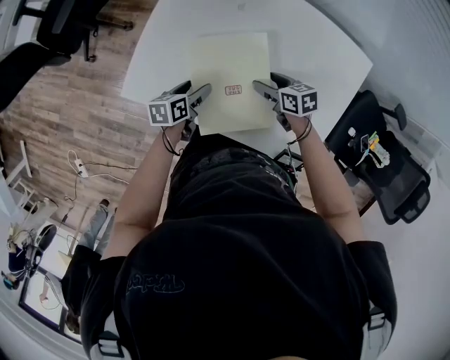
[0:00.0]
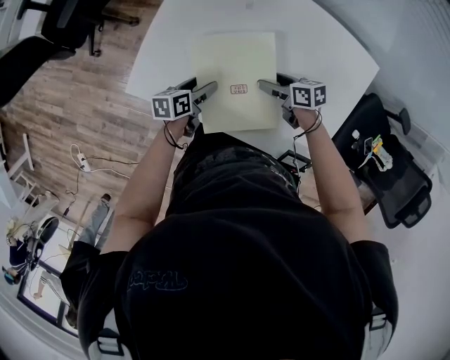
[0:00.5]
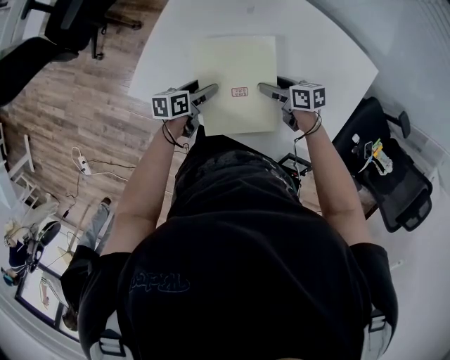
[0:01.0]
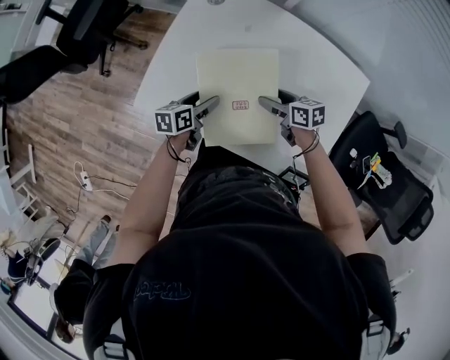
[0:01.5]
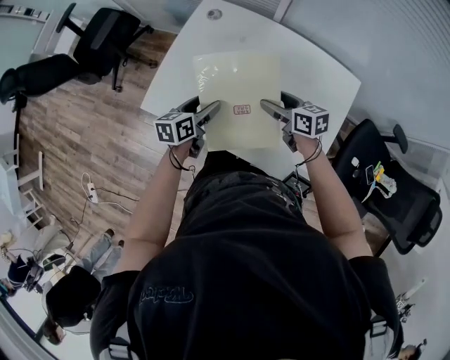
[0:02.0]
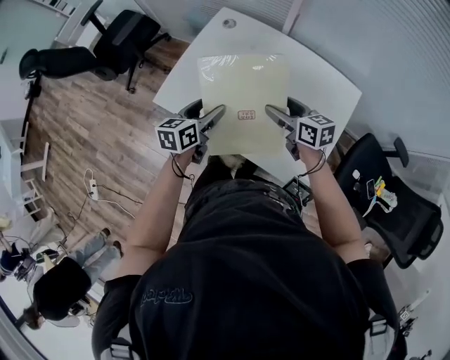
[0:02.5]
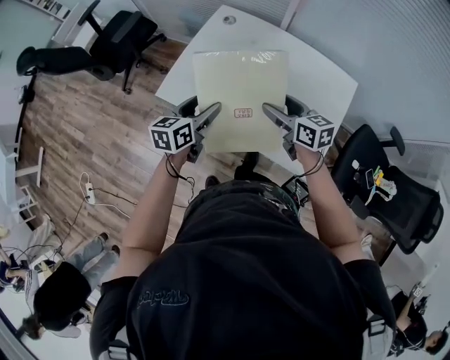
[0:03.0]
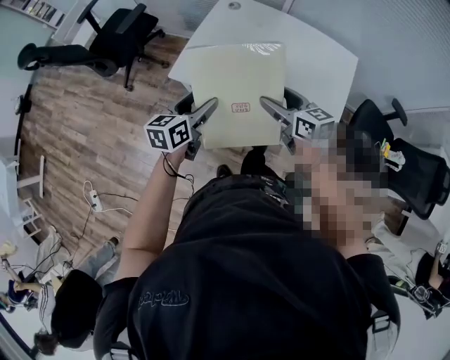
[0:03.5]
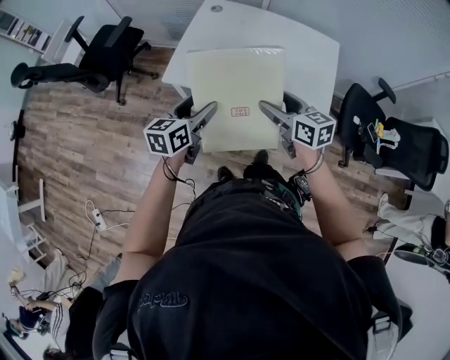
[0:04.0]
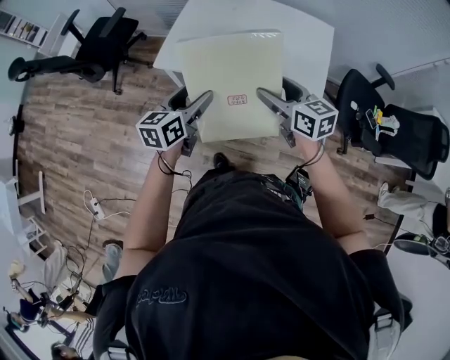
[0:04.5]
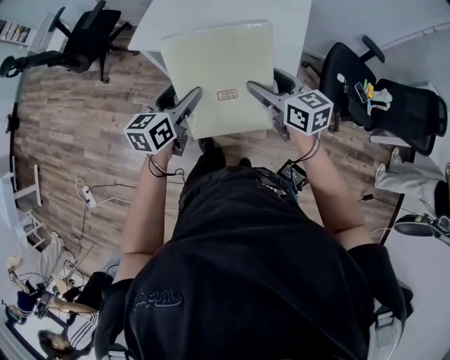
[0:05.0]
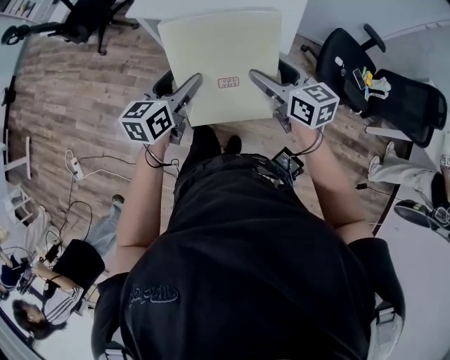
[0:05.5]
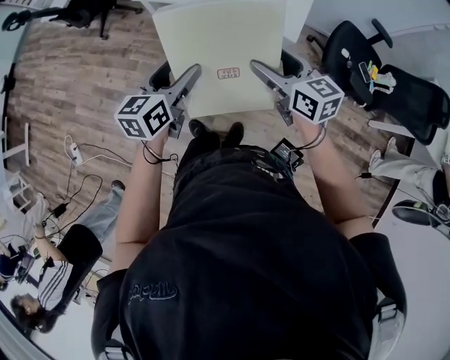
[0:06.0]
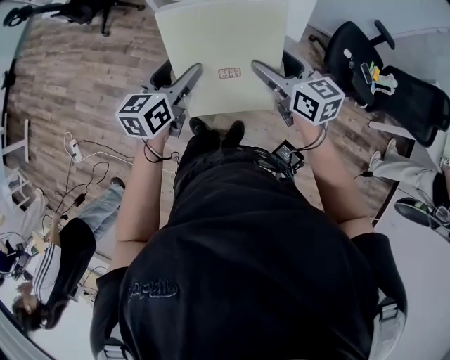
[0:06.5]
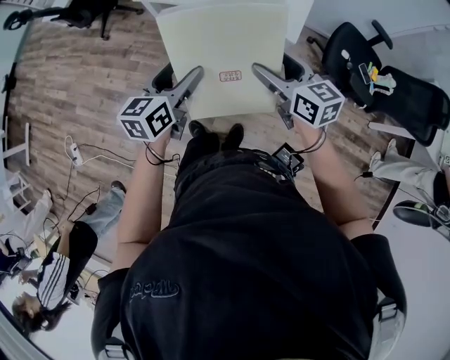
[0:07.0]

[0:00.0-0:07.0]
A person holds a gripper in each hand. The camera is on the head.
0:00.0 to 0:02.0: Both grippers move upward, roughly 10 cm.
0:02.0 to 0:03.5: Both grippers move backward, to the left and upward, approximately 25 cm.
0:03.5 to 0:05.0: Both grippers travel together backward and to the right, roughly 25 cm.
0:05.0 to 0:07.0: The two grippers go some 15 cm backward.

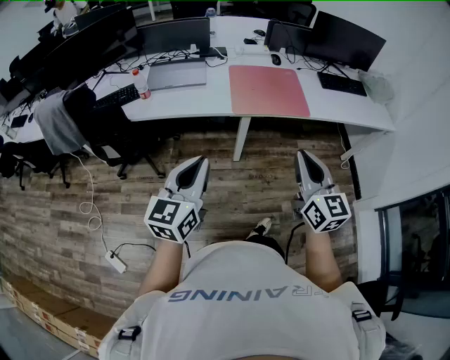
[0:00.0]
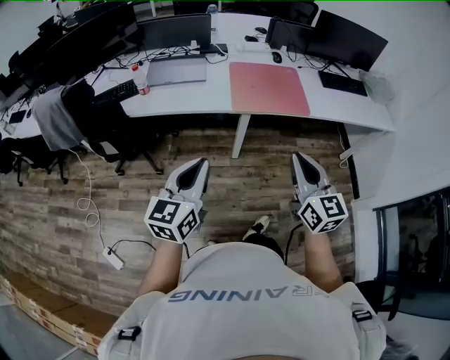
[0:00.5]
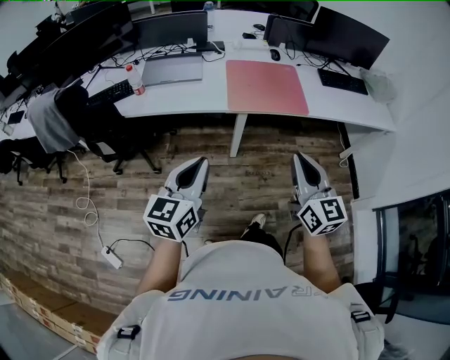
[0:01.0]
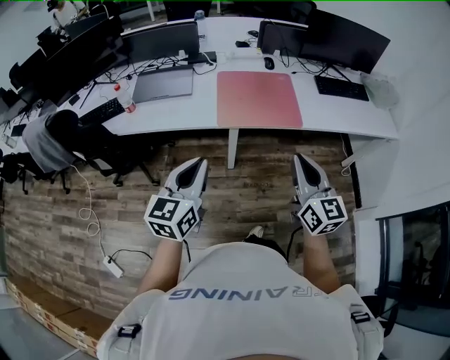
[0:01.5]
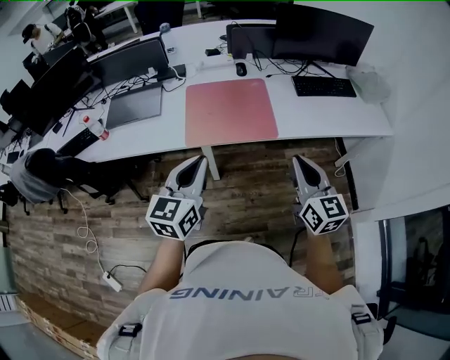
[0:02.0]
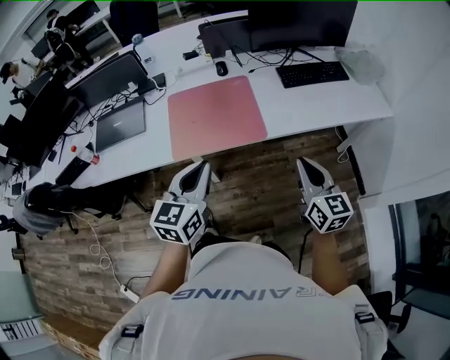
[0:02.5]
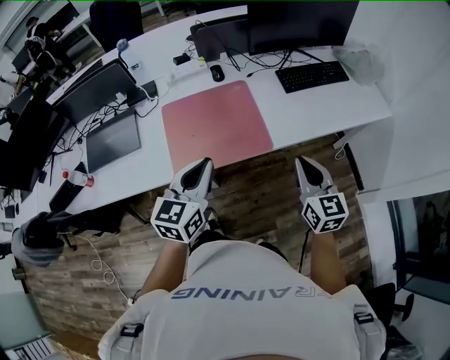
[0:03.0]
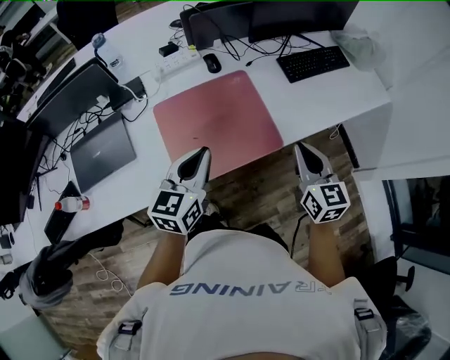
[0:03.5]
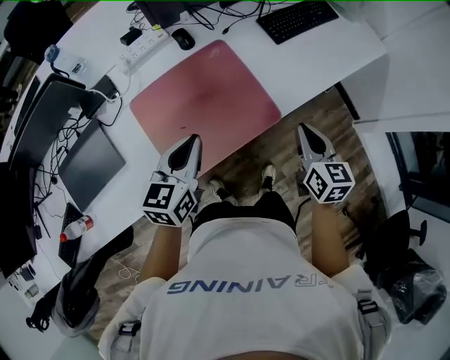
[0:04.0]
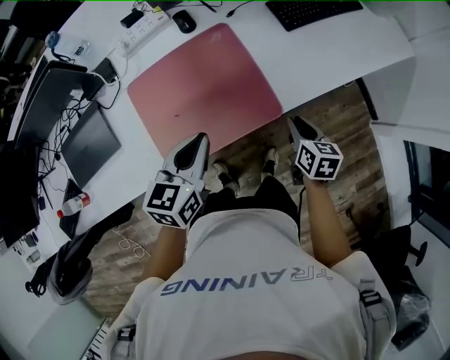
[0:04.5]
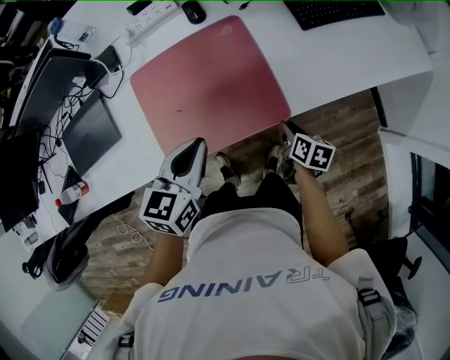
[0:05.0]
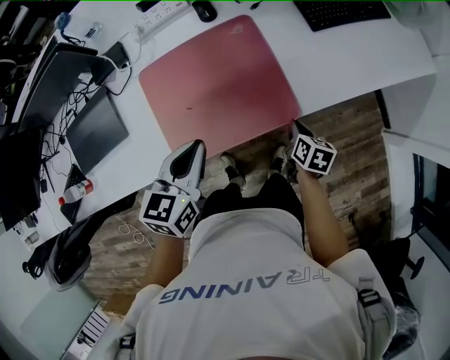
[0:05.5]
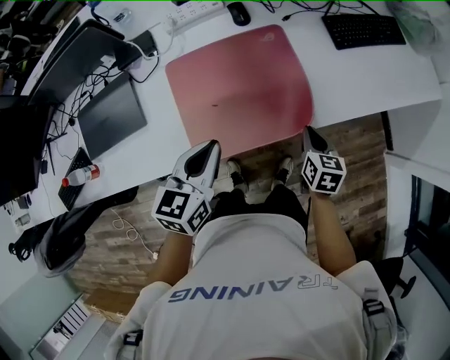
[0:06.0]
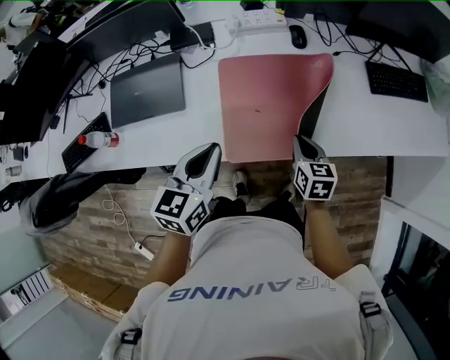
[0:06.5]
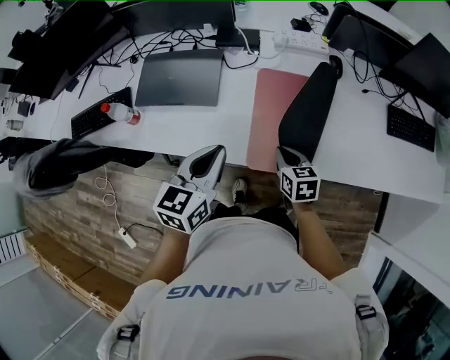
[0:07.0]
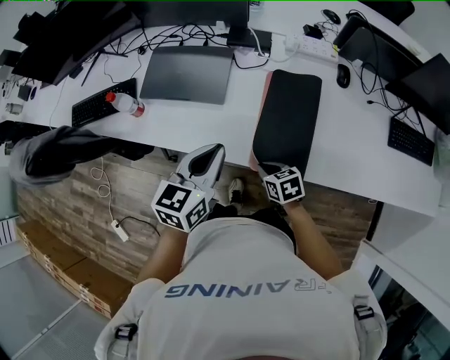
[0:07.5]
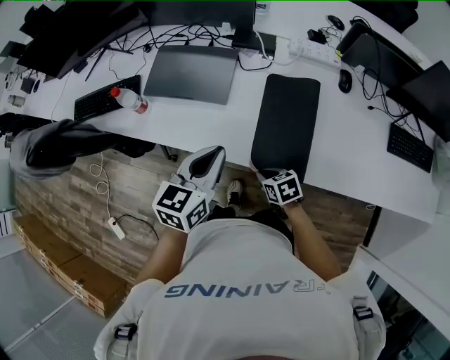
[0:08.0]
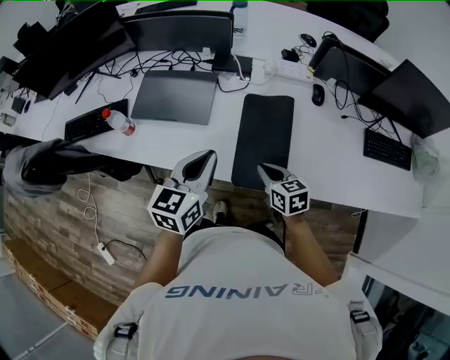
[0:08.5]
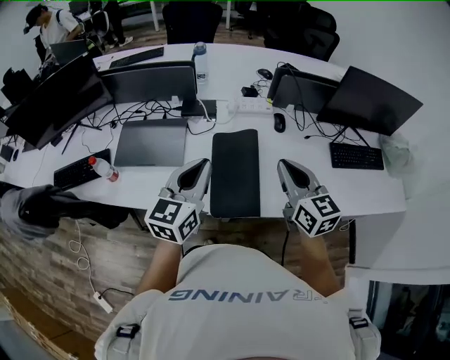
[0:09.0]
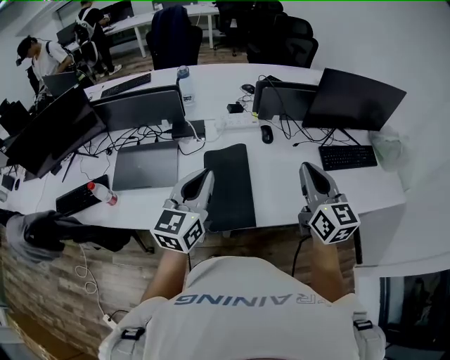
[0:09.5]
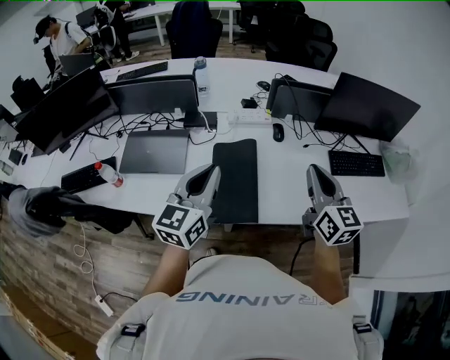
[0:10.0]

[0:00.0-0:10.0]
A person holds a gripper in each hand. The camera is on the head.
0:00.0 to 0:02.0: Both grippers move to the right and forward, roughly 30 cm.
0:02.0 to 0:04.0: The left gripper moves about 30 cm, and turns by approximately 30 degrees. The right gripper moves roughly 25 cm, and turns by approximately 40 degrees.
0:04.0 to 0:06.0: The left gripper goes to the right and returns, some 5 cm each way; the right gripper travels downward by approximately 15 cm, and opens, then closes again.
0:06.0 to 0:08.0: The right gripper ends up about 35 cm from where it was, and rotates approximately 60 degrees. The left gripper shifts by approximately 25 cm, and rotates some 30 degrees.
0:08.0 to 0:10.0: The left gripper goes roughly 15 cm upward, and changes its angle by approximately 20 degrees, while the right gripper travels upward by some 40 cm, and tilts its fingers about 50 degrees upward.

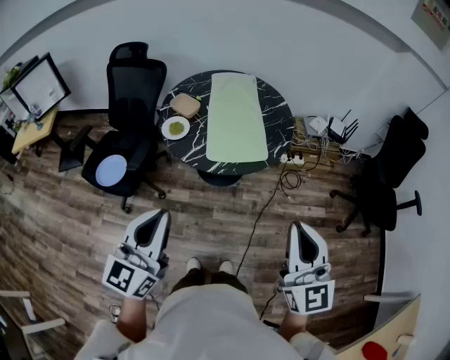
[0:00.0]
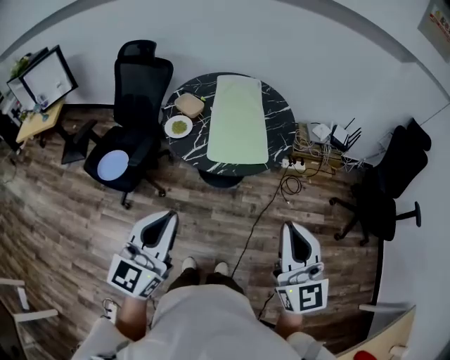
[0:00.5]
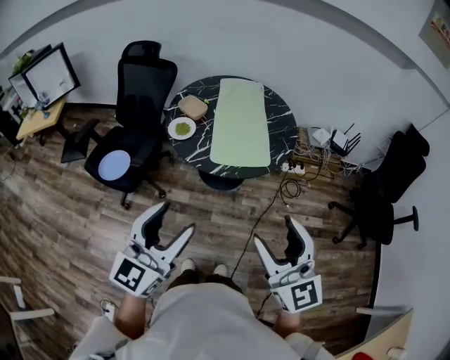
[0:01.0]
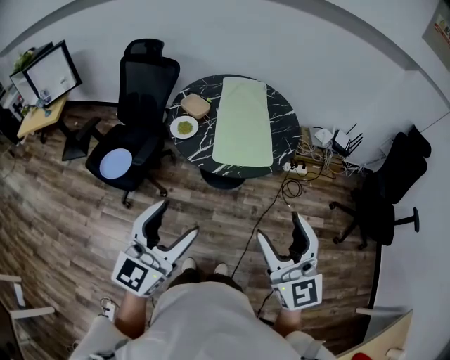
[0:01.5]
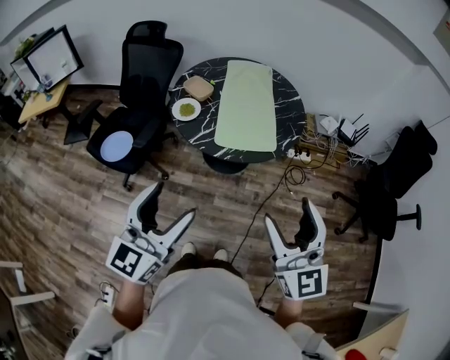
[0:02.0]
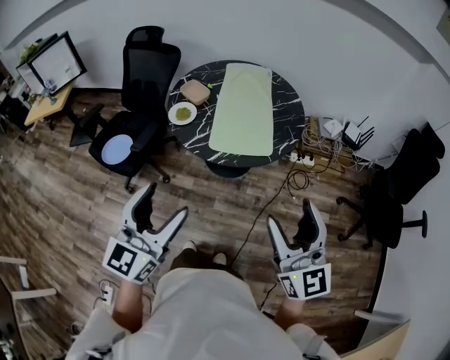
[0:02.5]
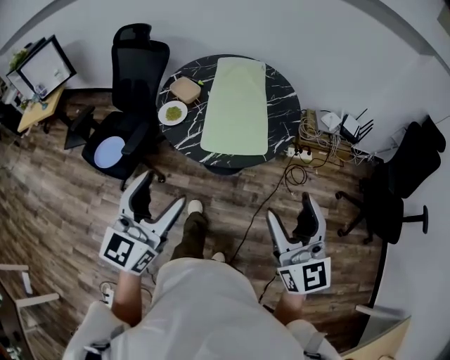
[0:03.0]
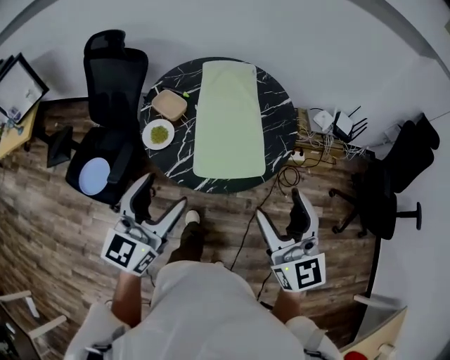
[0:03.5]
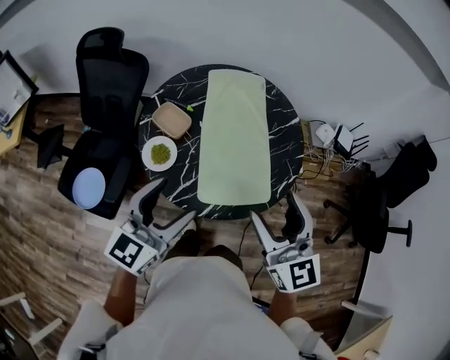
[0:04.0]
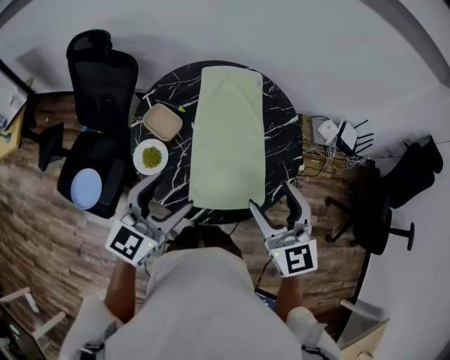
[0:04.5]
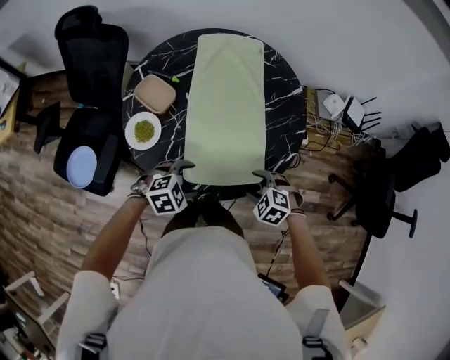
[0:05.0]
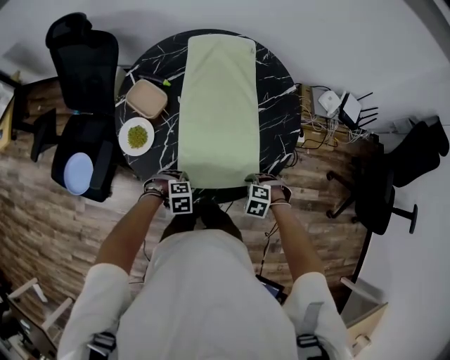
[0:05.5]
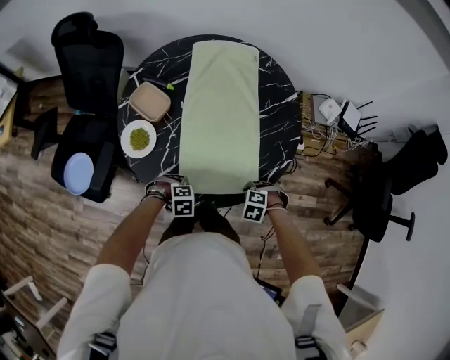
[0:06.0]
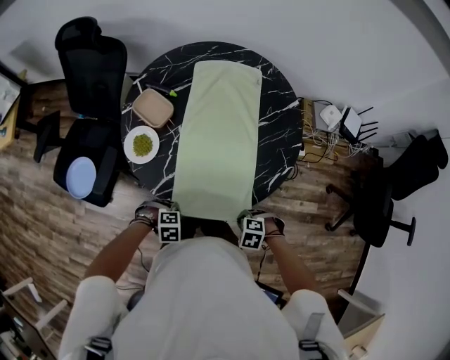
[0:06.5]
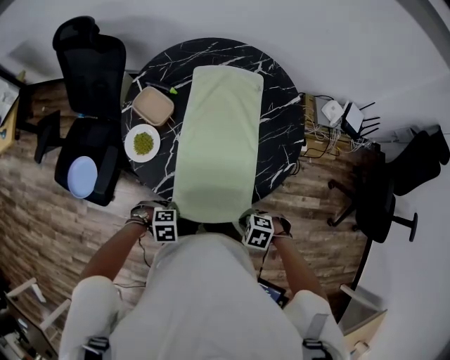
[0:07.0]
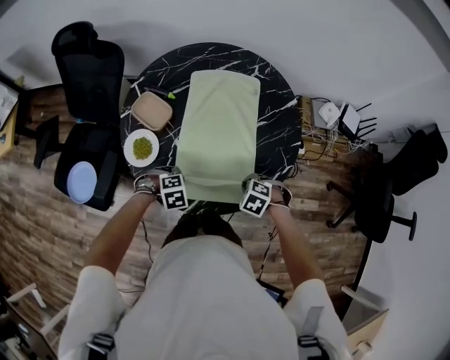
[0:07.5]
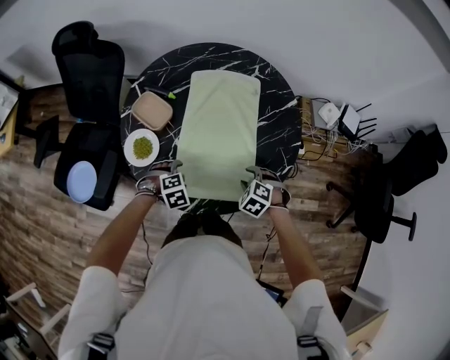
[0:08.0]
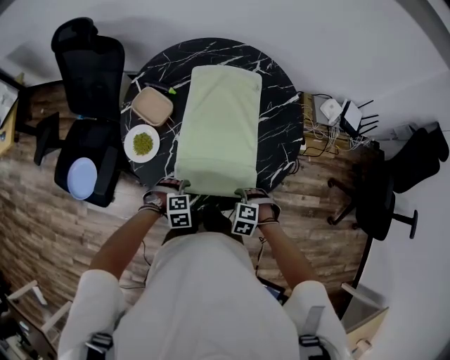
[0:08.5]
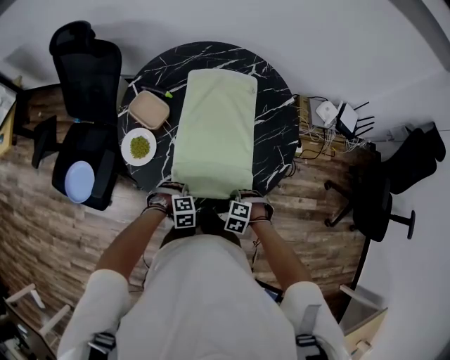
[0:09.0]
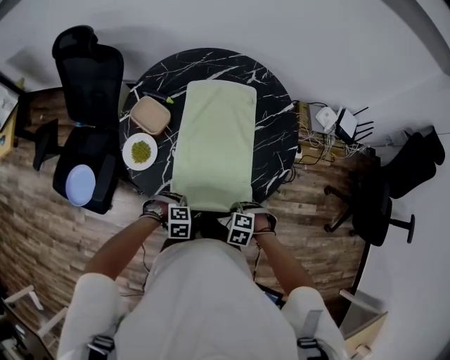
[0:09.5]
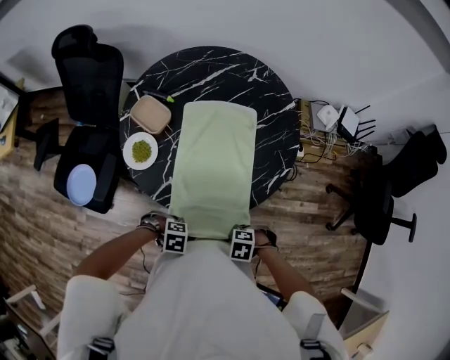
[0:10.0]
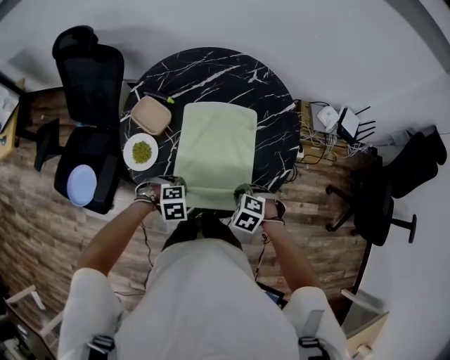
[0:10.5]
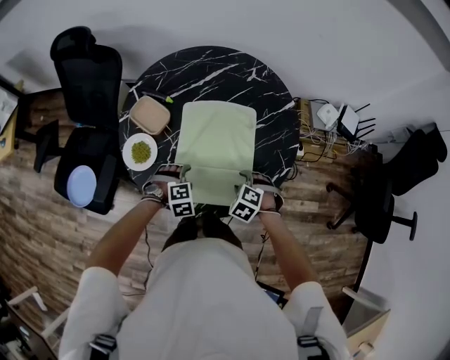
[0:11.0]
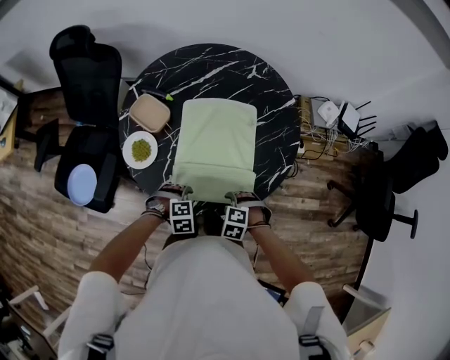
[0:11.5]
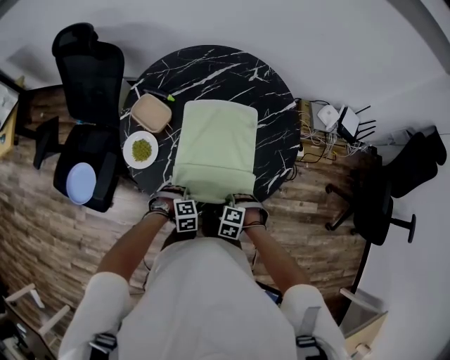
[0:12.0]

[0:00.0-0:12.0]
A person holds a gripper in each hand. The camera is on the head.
0:00.0 to 0:02.0: The left gripper opens its fingers. Meanwhile the right gripper opens.
0:02.0 to 0:04.0: The two grippers go some 35 cm forward.
0:04.0 to 0:06.0: The two grippers go approximately 40 cm downward. The left gripper angles its fingers downward, by roughly 70 degrees, and closes up. The right gripper tilts its fingers approximately 80 degrees downward, and closes.
0:06.0 to 0:08.0: The left gripper shifts by some 10 cm, and opens its fingers, while the right gripper changes place by about 10 cm, changes its angle by some 20 degrees, and opens its fingers.
0:08.0 to 0:10.0: The right gripper changes place by about 25 cm, rotates some 40 degrees, and closes its fingers. Meanwhile the left gripper moves roughly 20 cm, swivels roughly 30 degrees, and closes up.
0:10.0 to 0:12.0: The left gripper changes place by about 15 cm, changes its angle by some 30 degrees, and opens, then closes once more. The right gripper turns by some 30 degrees, and opens and closes again.
